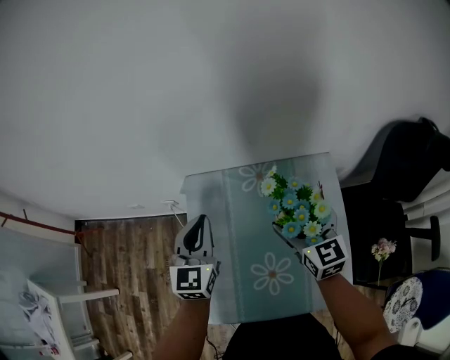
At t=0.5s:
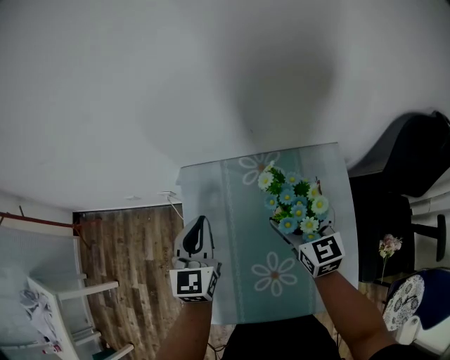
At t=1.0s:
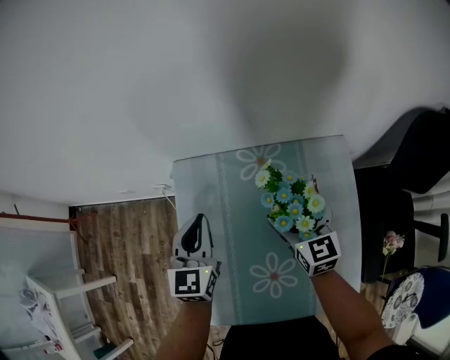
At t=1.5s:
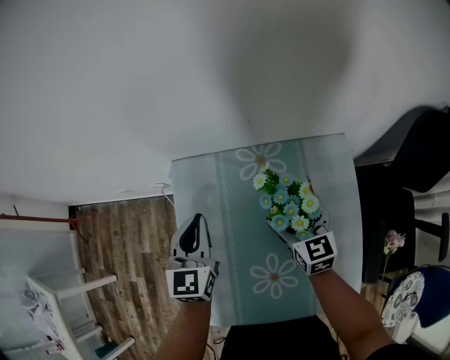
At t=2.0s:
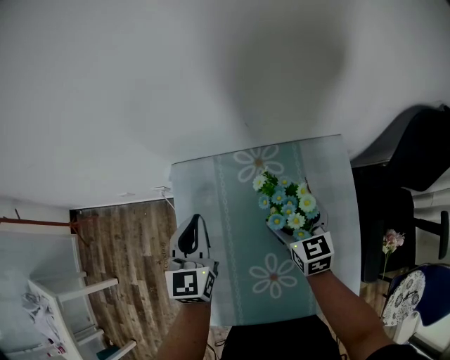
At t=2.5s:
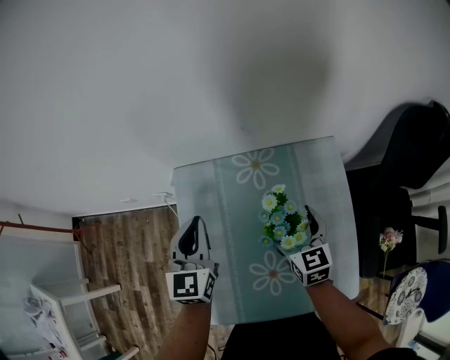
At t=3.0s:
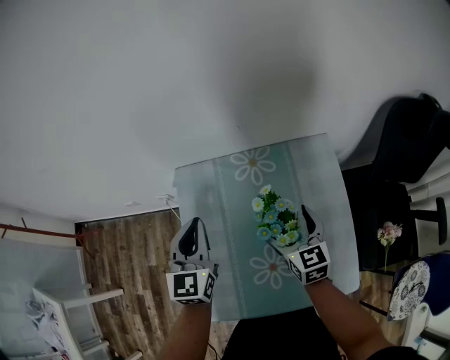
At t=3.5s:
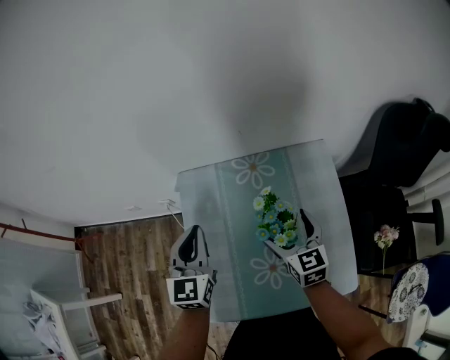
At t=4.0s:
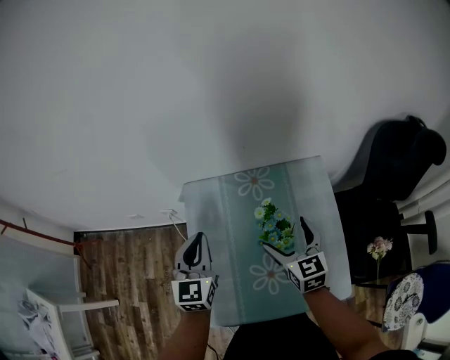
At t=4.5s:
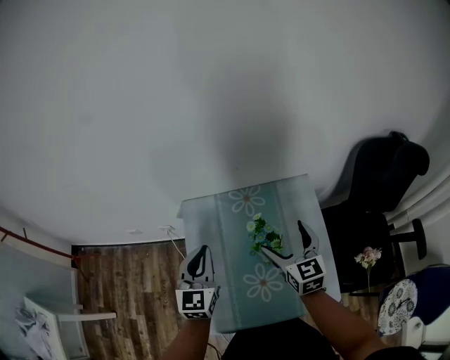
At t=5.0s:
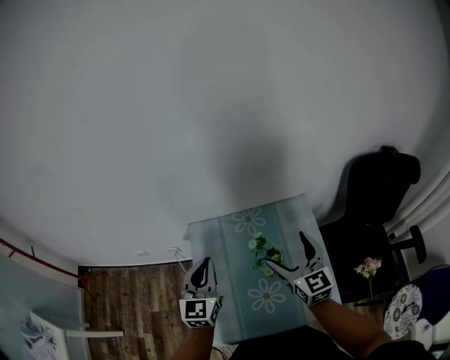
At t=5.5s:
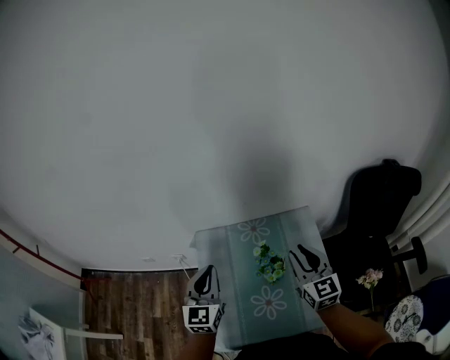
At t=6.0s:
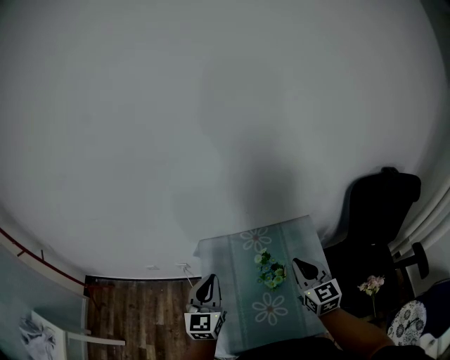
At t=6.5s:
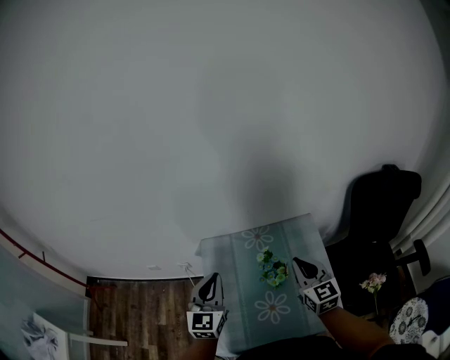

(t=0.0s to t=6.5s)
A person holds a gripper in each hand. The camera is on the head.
t=0.0s - t=2.0s: The right gripper goes approximately 15 cm downward. Meanwhile the left gripper is displaced downward by roughly 5 cm.
t=2.0s - t=4.5s: Both grippers move upward and backward, roughly 15 cm.
t=4.5s - t=6.5s: The two grippers go approximately 5 cm upward. The right gripper closes up.

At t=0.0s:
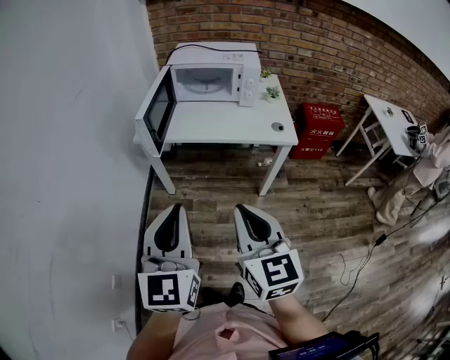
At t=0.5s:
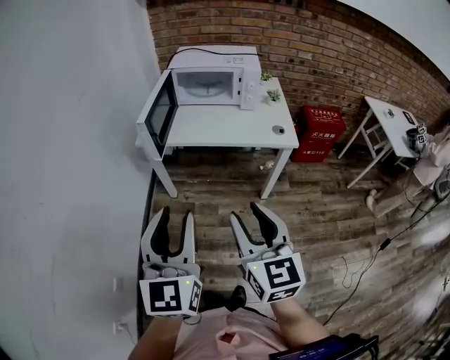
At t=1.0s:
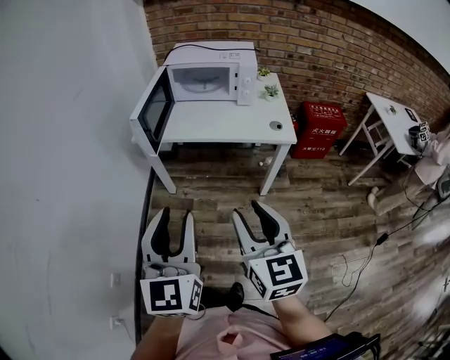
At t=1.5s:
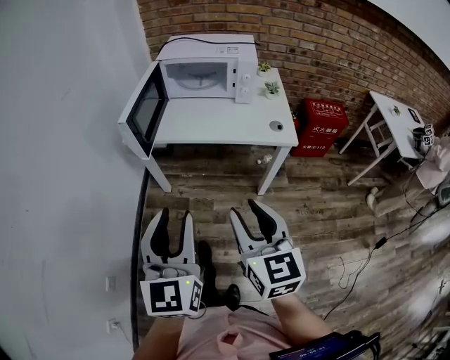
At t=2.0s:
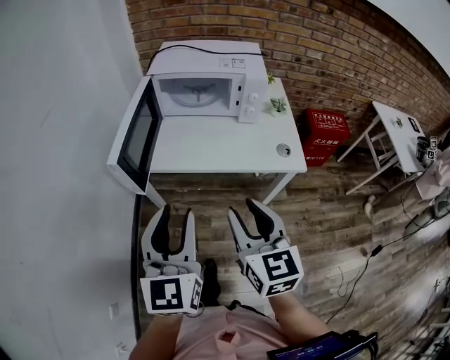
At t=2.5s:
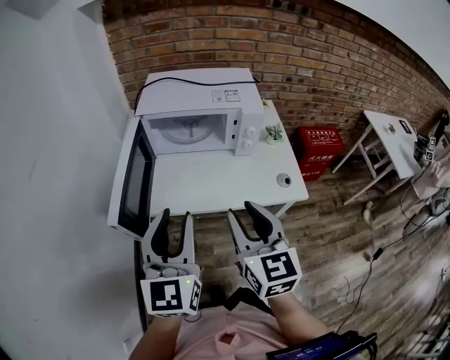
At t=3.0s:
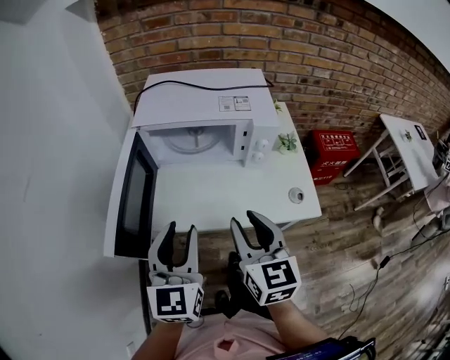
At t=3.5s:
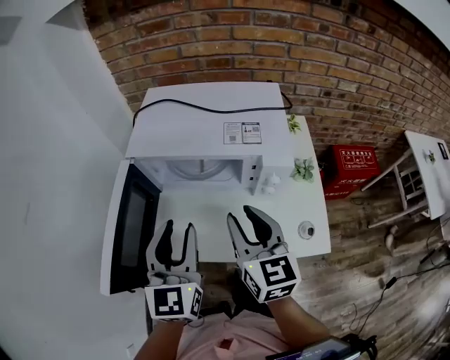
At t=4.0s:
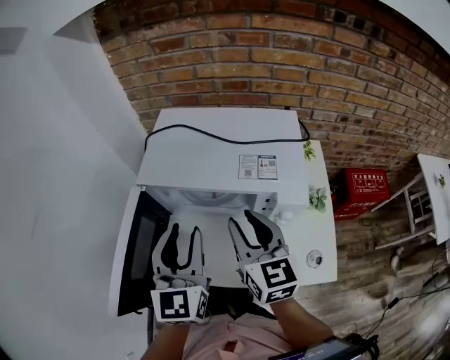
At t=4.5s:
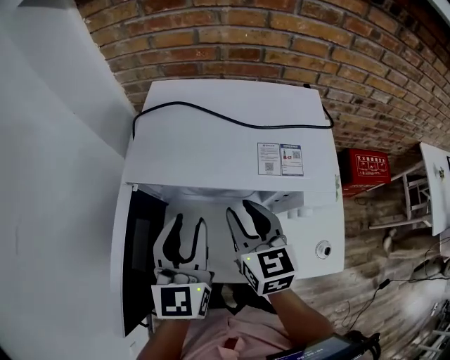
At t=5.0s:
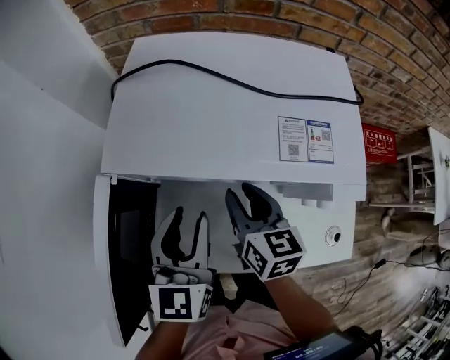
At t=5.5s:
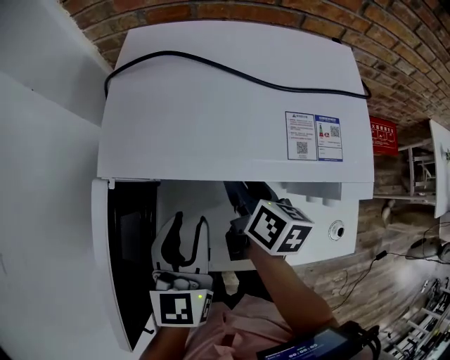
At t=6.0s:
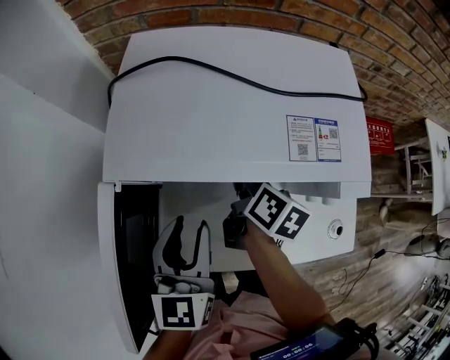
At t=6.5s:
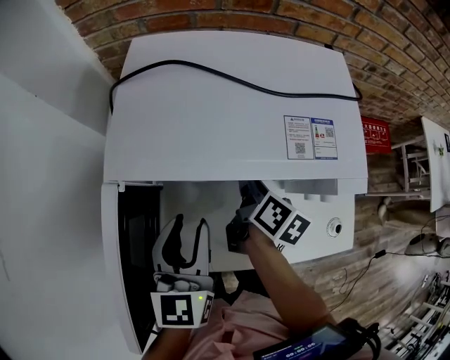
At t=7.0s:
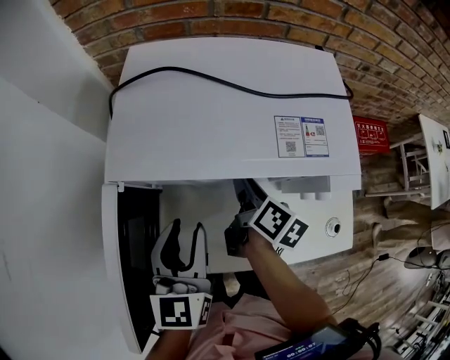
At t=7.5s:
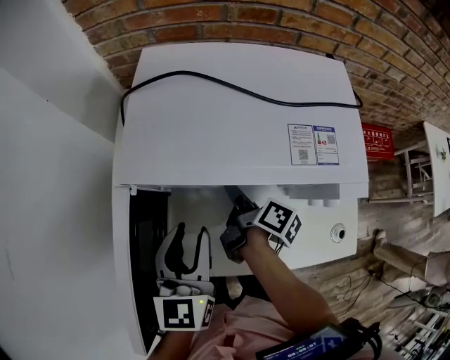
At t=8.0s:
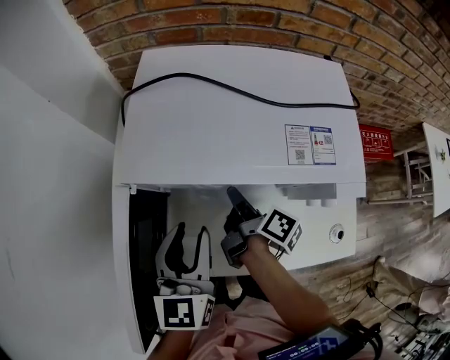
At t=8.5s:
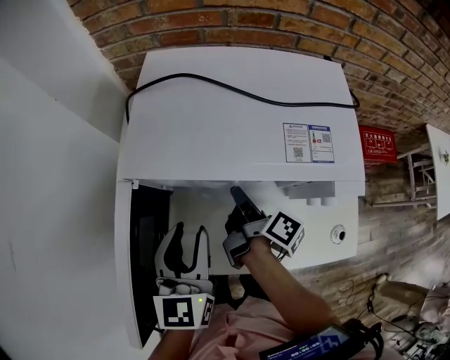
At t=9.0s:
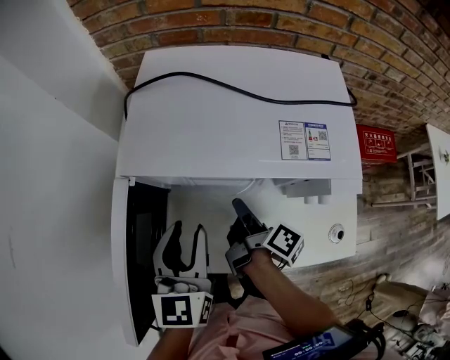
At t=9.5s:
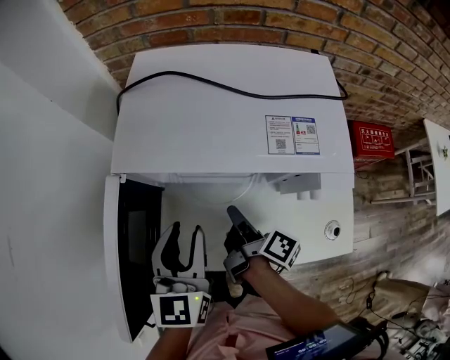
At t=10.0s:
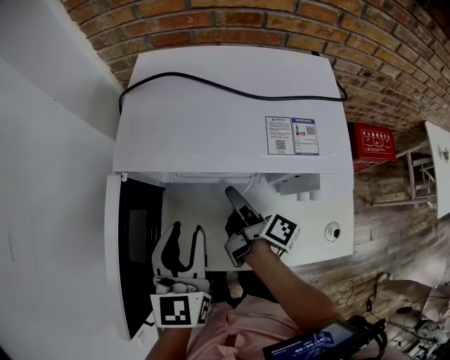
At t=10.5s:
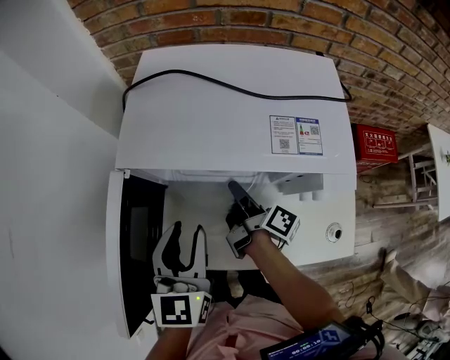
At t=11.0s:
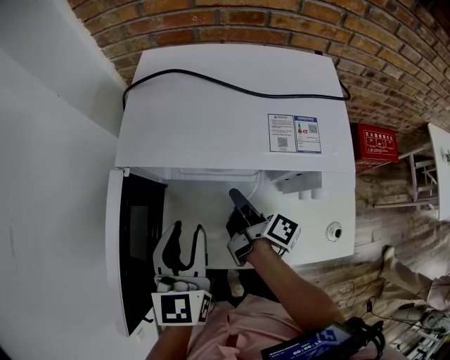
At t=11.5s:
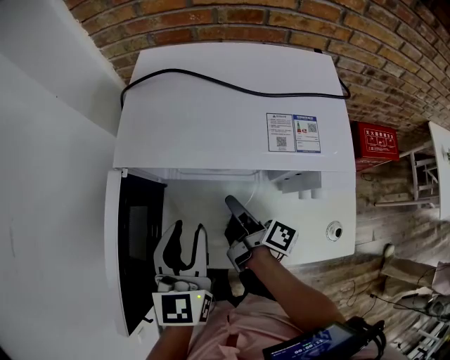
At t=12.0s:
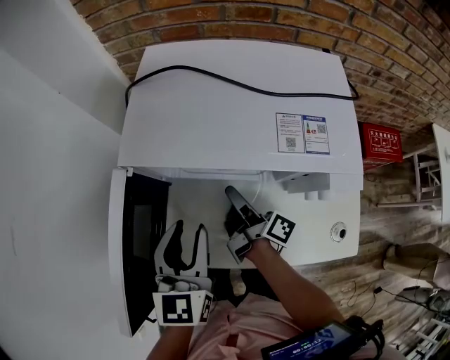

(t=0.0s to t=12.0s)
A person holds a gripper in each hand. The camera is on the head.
t=0.0s - t=2.0s: Both grippers travel together forward, some 20 cm. The left gripper opens; the right gripper opens up.
t=2.0s - t=4.0s: Both grippers move forward, roughly 40 cm.
t=4.0s - t=6.0s: The left gripper goes some 10 cm downward. Meanwhile the right gripper is displaced downward and forward by about 20 cm, and twists roughly 50 degrees clockwise, seen from behind.
t=6.0s - t=8.0s: The right gripper shifts by approximately 5 cm, turns by some 30 degrees, and closes up.
t=8.0s - t=10.0s: The right gripper opens up.
t=10.0s - t=12.0s: The right gripper closes, then opens again.

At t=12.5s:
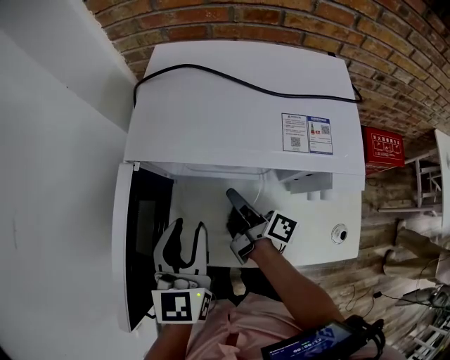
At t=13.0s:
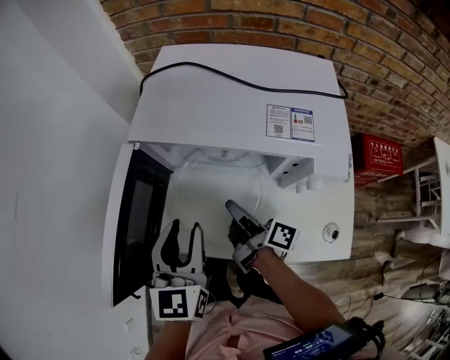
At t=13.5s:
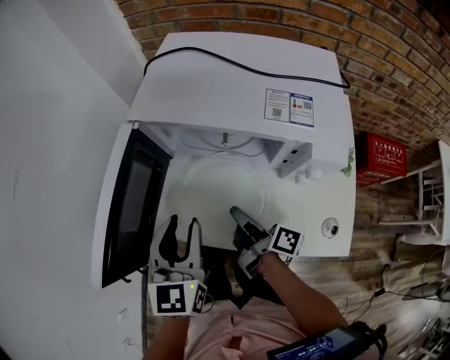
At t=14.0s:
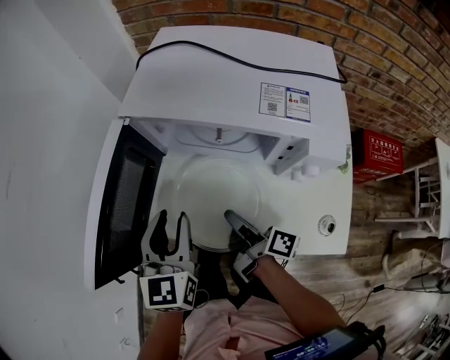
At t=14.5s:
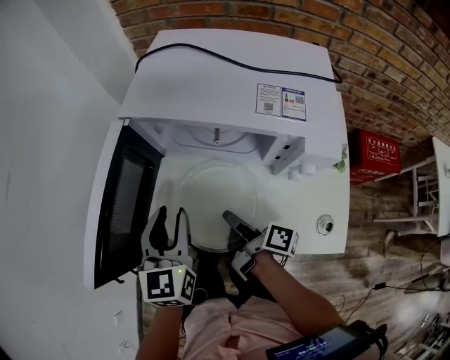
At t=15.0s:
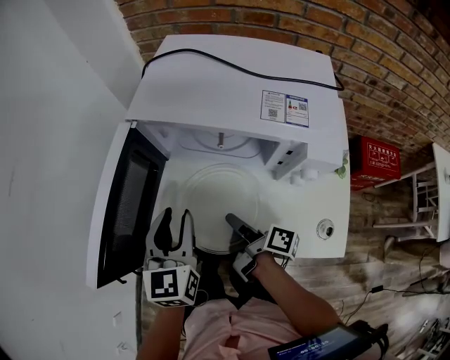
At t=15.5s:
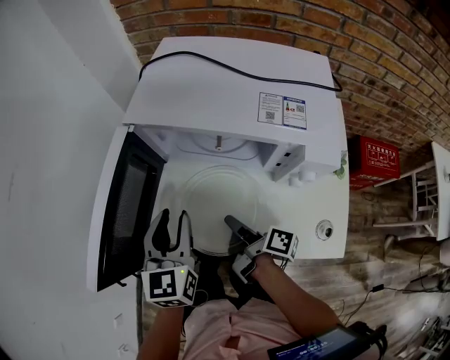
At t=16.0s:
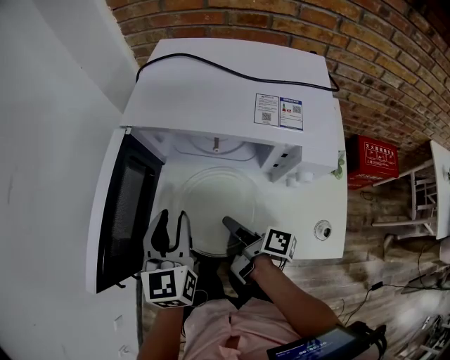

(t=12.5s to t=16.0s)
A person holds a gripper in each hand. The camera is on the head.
t=12.5s - t=14.5s: The left gripper goes approximately 5 cm backward. Meanwhile the right gripper goes some 15 cm backward.
t=14.5s - t=16.0s: Both grippers stay about where they are.

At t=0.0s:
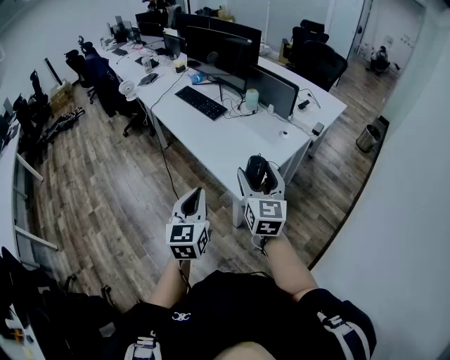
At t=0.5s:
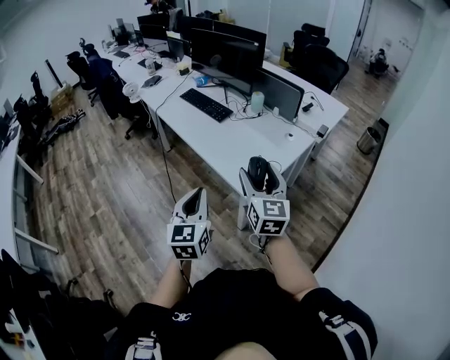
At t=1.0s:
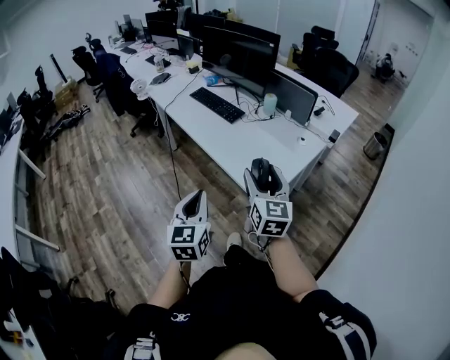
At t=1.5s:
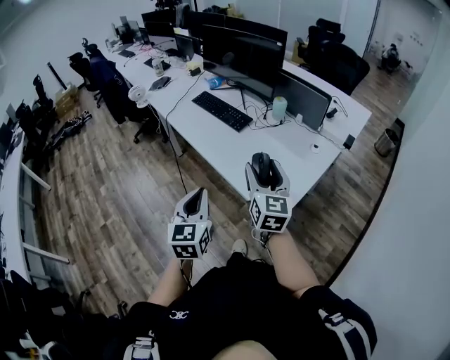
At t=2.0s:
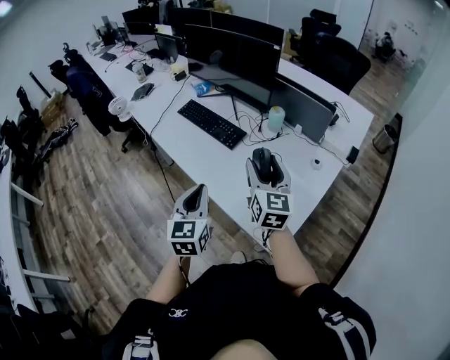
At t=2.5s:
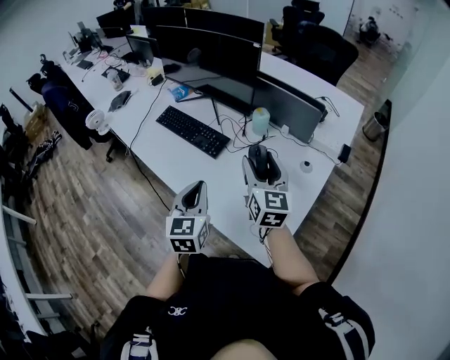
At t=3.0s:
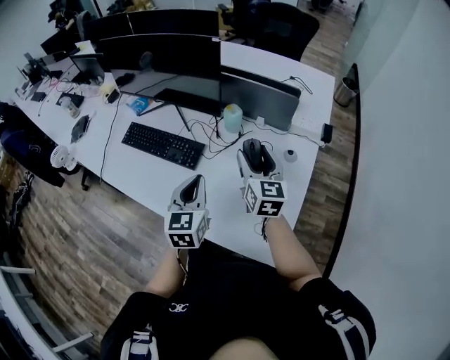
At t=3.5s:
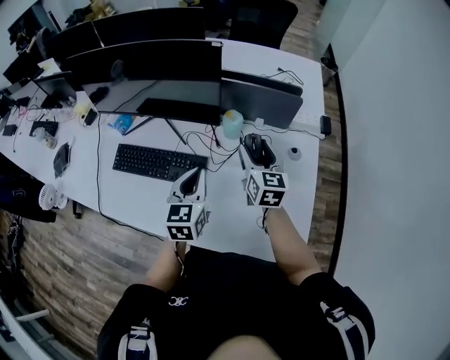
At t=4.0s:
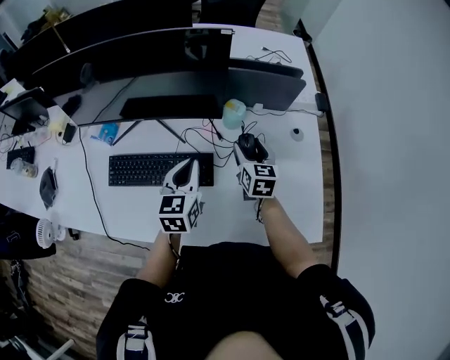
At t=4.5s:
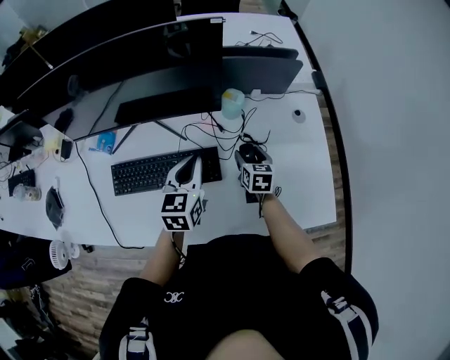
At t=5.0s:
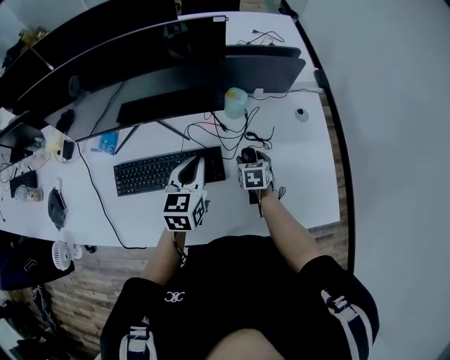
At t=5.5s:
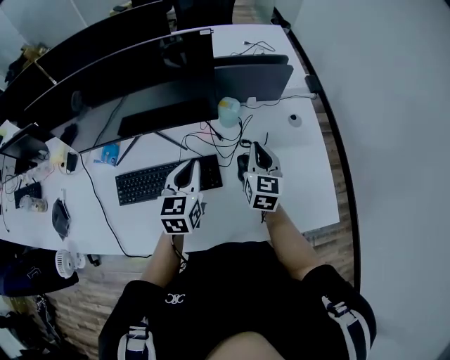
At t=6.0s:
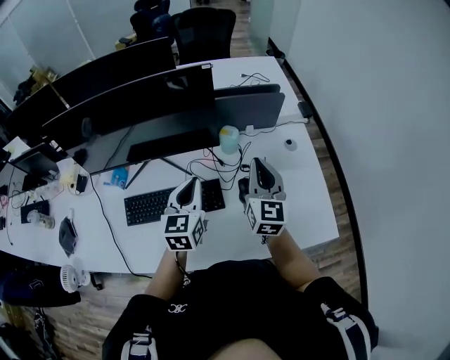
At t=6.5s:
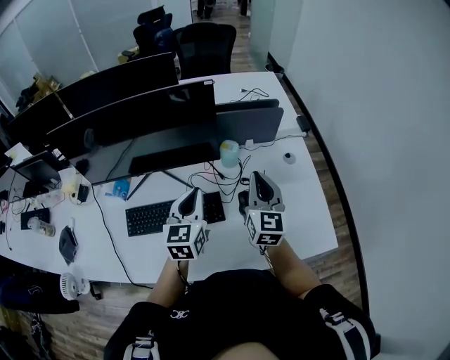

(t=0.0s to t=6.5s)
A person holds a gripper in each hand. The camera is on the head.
t=0.0s - t=2.0s: The two grippers go approximately 35 cm forward.
t=2.0s - t=4.5s: The right gripper shifts by approximately 50 cm, and angles its fingers downward, by approximately 30 degrees, while the left gripper changes place by about 50 cm, and changes its angle by roughly 50 degrees.
t=4.5s - t=6.5s: The left gripper moves upward, approximately 10 cm. The right gripper shifts roughly 25 cm upward, tilts its fingers approximately 40 degrees upward, and closes its fingers.
